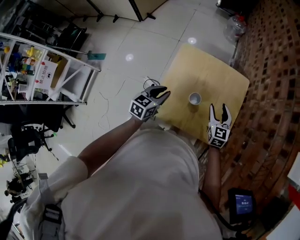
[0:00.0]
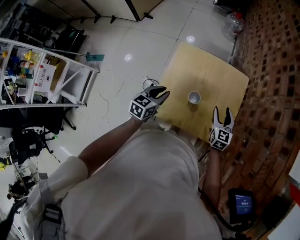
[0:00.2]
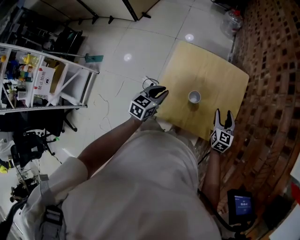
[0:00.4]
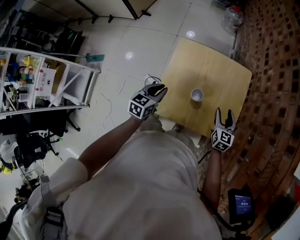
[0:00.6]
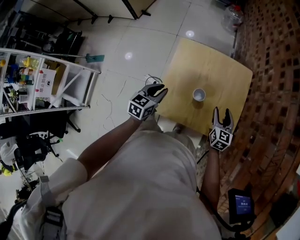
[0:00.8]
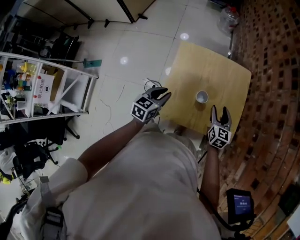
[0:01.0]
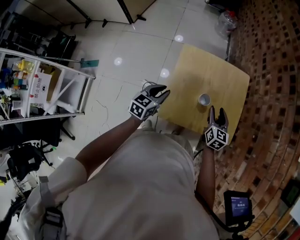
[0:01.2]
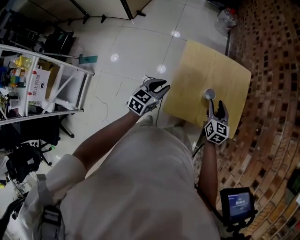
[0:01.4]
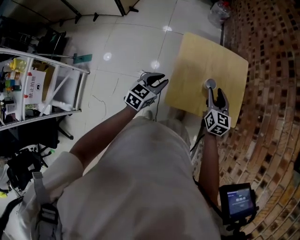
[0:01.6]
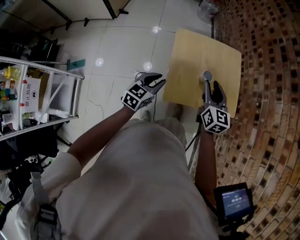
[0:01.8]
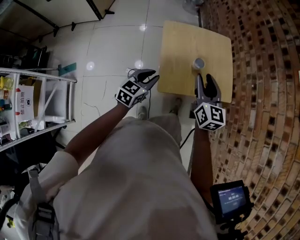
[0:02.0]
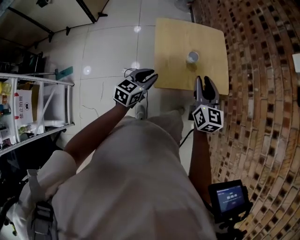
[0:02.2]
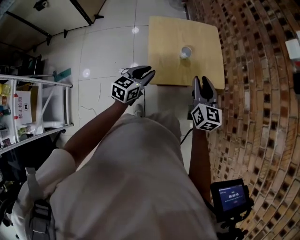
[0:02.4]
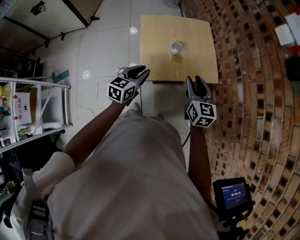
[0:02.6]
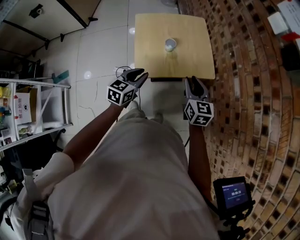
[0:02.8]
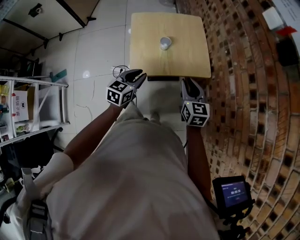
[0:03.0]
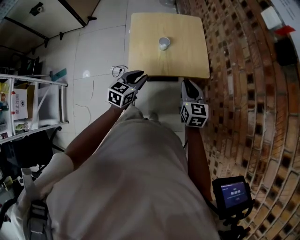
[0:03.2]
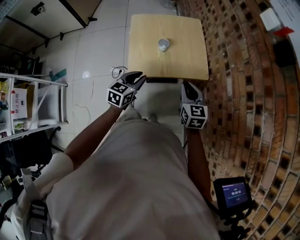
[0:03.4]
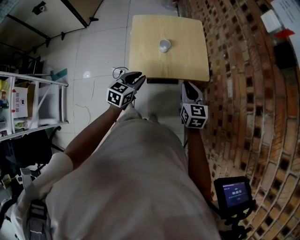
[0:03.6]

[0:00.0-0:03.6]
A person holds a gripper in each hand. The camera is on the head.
0:00.0 to 0:01.8: The right gripper is displaced to the left, backward and upward by some 25 cm, and rotates about 20 degrees; the left gripper travels to the left and backward by roughly 15 cm, and changes its angle by some 20 degrees.
0:01.8 to 0:03.6: The grippers both shift to the right and backward by some 25 cm. The right gripper closes.

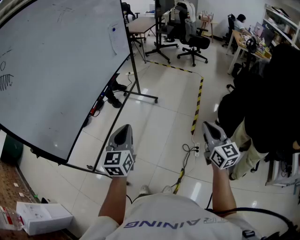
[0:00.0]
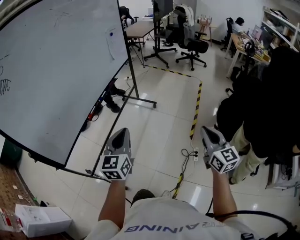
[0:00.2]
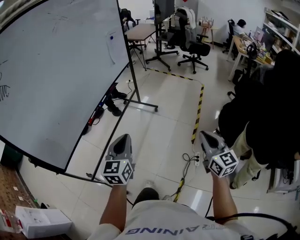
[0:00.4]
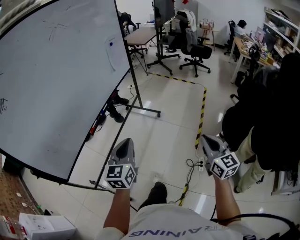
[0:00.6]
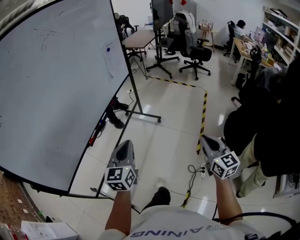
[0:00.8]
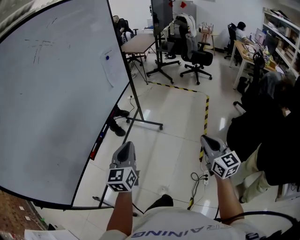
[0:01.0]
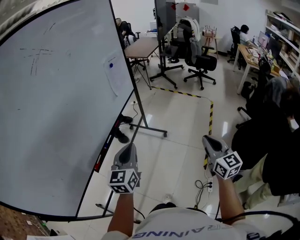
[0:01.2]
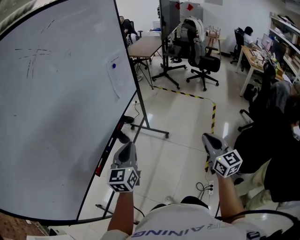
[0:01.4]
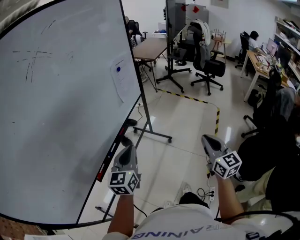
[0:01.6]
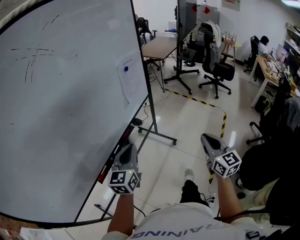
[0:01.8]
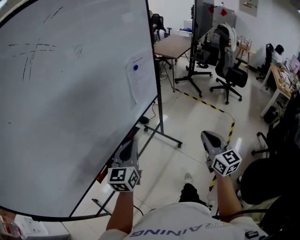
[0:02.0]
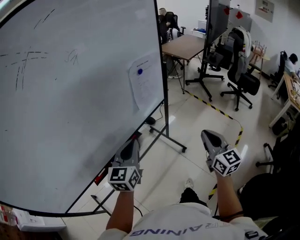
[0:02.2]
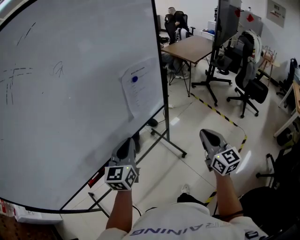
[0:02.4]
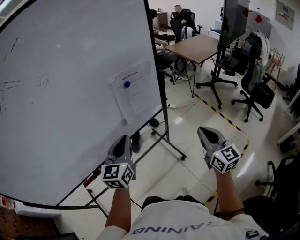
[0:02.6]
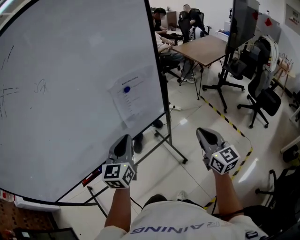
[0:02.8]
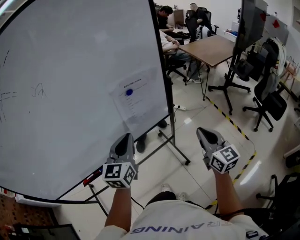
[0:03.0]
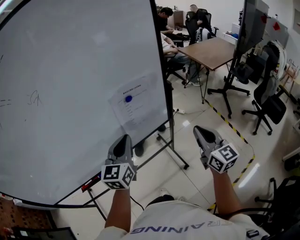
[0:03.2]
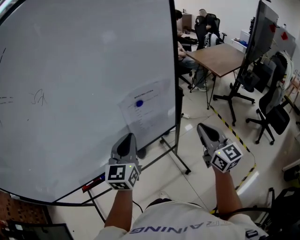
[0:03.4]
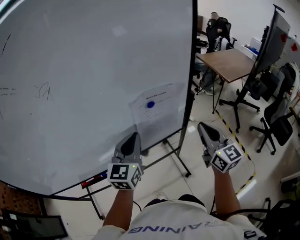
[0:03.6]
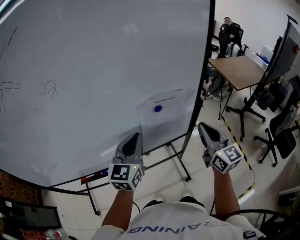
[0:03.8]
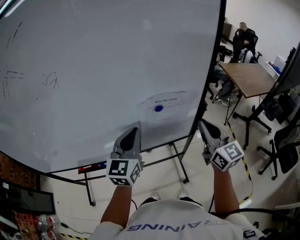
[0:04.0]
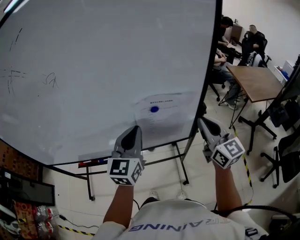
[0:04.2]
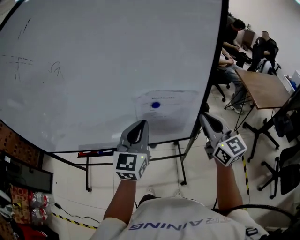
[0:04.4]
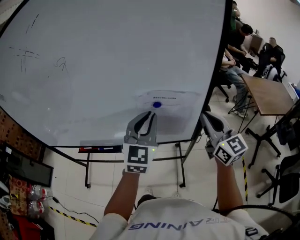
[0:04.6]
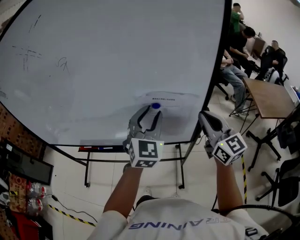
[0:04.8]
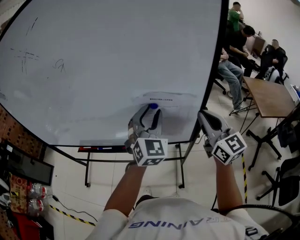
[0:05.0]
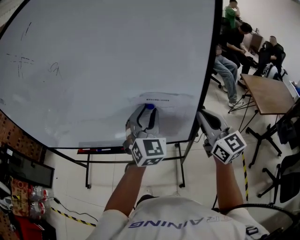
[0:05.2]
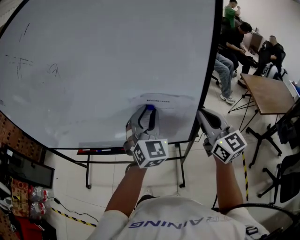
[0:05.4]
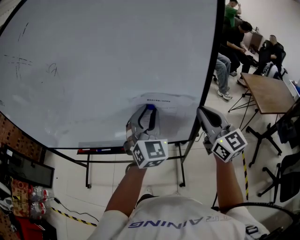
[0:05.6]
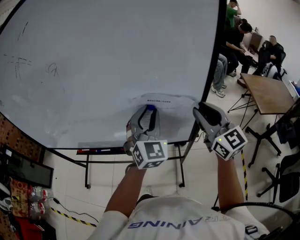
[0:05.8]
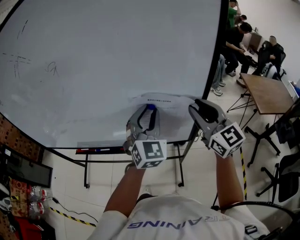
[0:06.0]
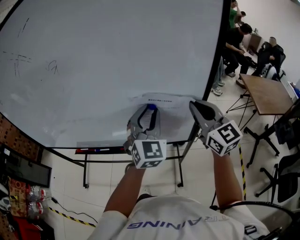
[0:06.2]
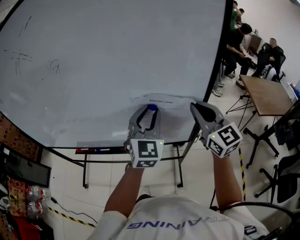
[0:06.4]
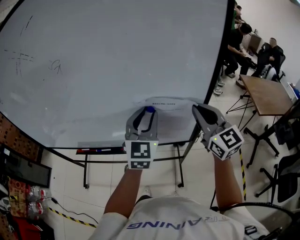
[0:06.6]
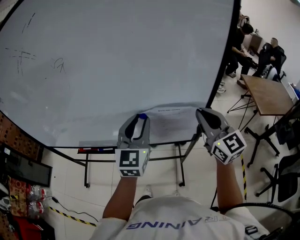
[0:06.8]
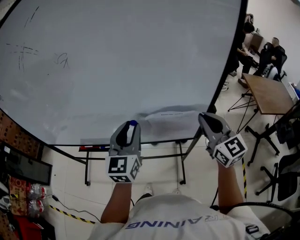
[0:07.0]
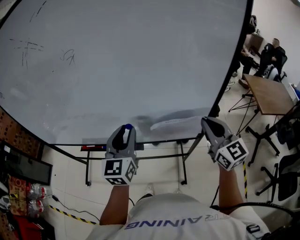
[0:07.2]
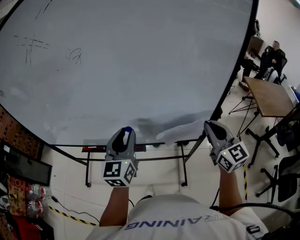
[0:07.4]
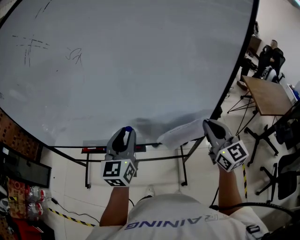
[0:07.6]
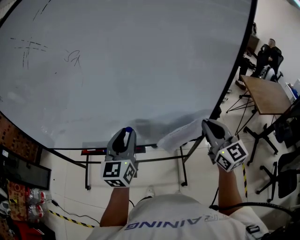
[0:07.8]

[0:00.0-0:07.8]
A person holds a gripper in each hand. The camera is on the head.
0:00.0 to 0:01.6: Both grippers move forward, some 35 cm.
0:01.6 to 0:03.2: The right gripper shifts by roughly 50 cm, and changes its angle by approximately 40 degrees. Meanwhile the left gripper shifts by approximately 35 cm, and swivels some 30 degrees.
0:03.2 to 0:04.6: The right gripper shifts by about 20 cm, and swivels about 30 degrees. Meanwhile the left gripper ends up approximately 10 cm from where it was, and turns by about 30 degrees.
0:04.6 to 0:06.2: The right gripper changes place by about 5 cm, and opens and closes again.
0:06.2 to 0:07.8: The left gripper moves to the left, some 15 cm, and changes its angle by about 30 degrees. The right gripper ends up approximately 5 cm from where it was.

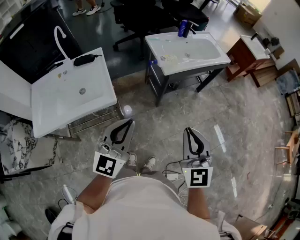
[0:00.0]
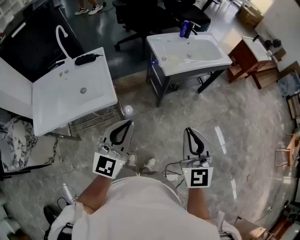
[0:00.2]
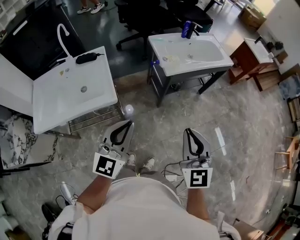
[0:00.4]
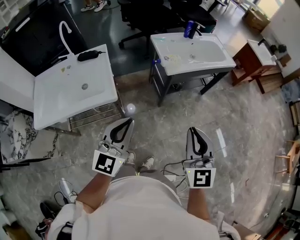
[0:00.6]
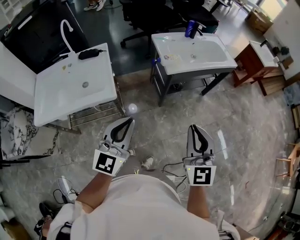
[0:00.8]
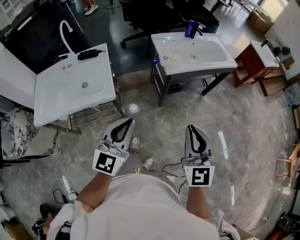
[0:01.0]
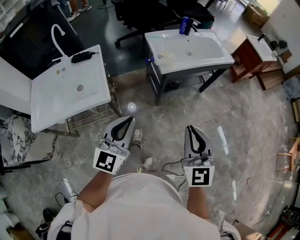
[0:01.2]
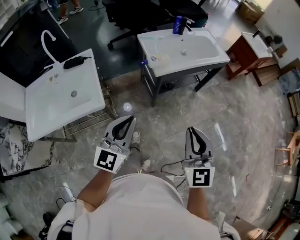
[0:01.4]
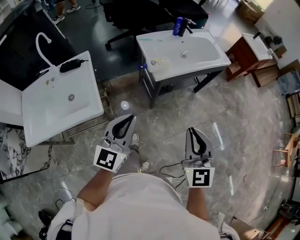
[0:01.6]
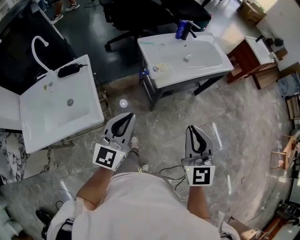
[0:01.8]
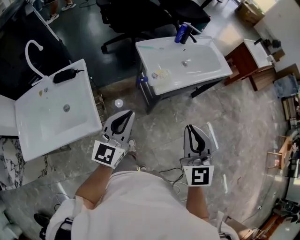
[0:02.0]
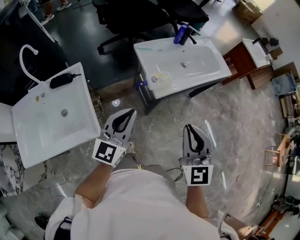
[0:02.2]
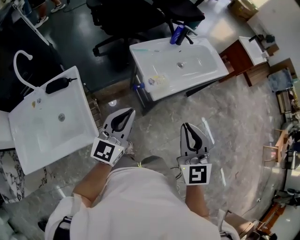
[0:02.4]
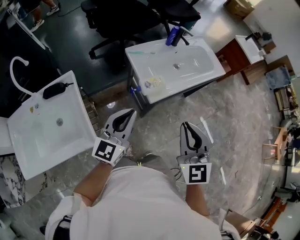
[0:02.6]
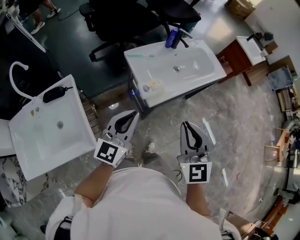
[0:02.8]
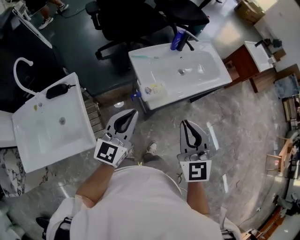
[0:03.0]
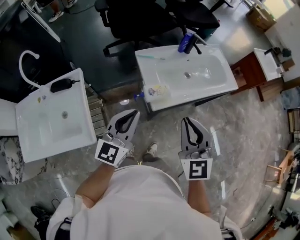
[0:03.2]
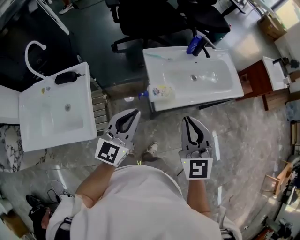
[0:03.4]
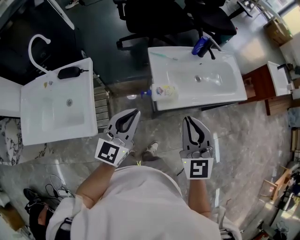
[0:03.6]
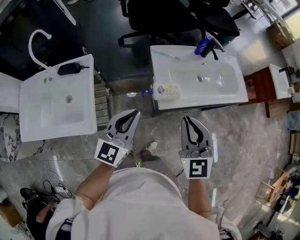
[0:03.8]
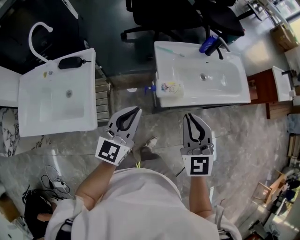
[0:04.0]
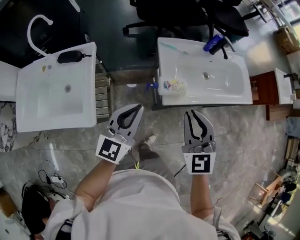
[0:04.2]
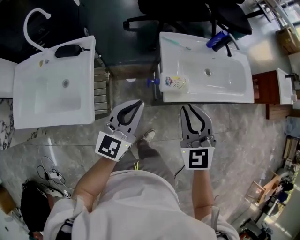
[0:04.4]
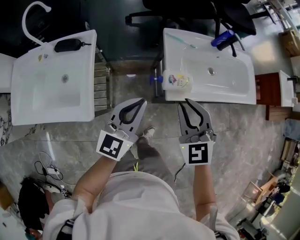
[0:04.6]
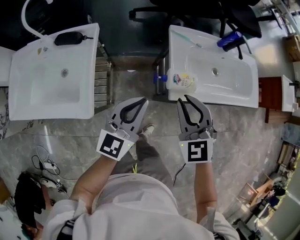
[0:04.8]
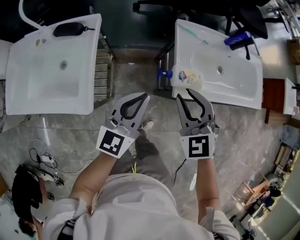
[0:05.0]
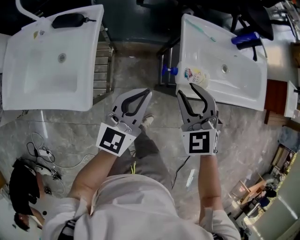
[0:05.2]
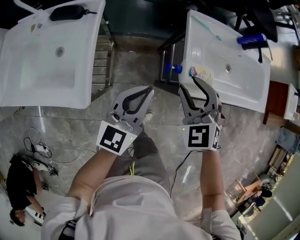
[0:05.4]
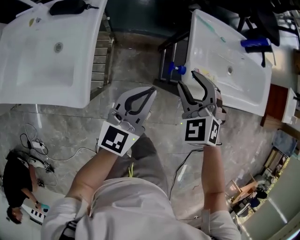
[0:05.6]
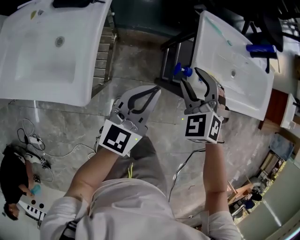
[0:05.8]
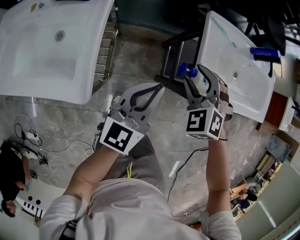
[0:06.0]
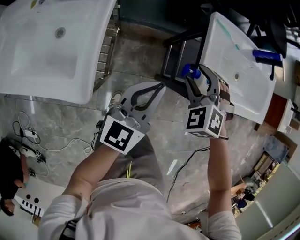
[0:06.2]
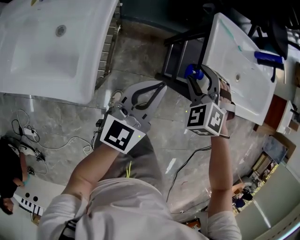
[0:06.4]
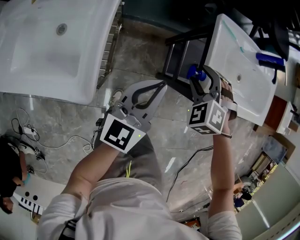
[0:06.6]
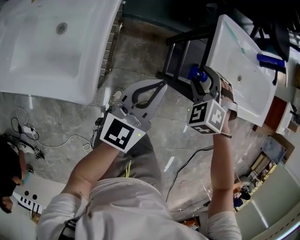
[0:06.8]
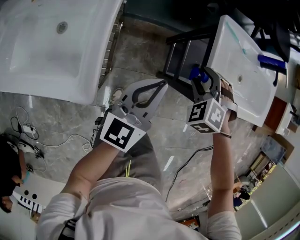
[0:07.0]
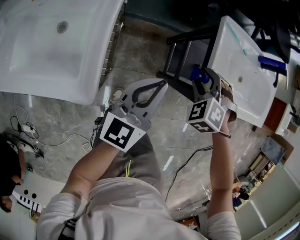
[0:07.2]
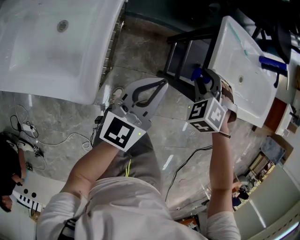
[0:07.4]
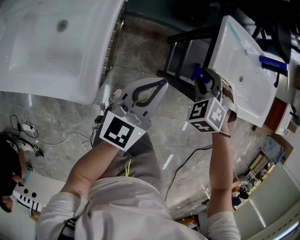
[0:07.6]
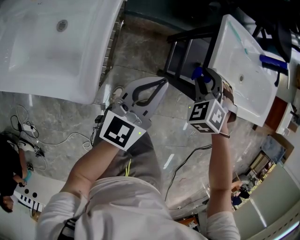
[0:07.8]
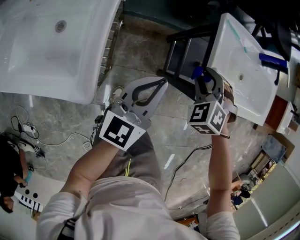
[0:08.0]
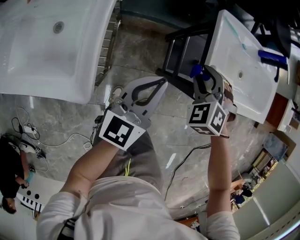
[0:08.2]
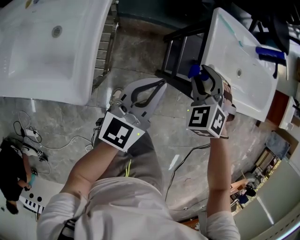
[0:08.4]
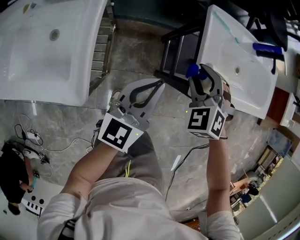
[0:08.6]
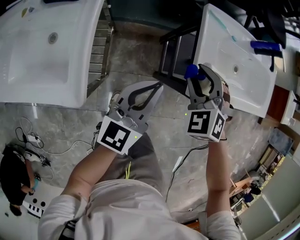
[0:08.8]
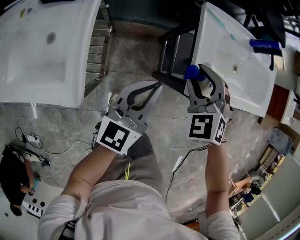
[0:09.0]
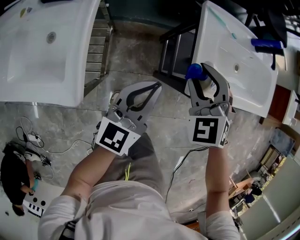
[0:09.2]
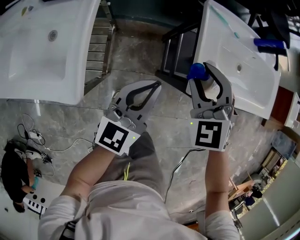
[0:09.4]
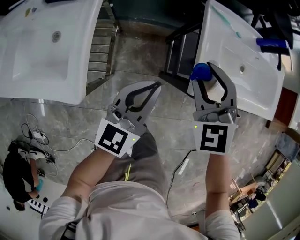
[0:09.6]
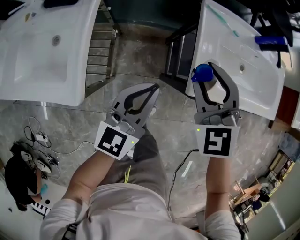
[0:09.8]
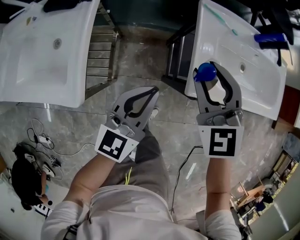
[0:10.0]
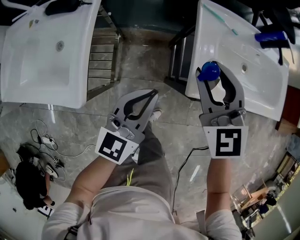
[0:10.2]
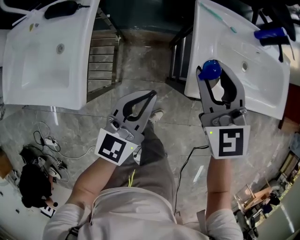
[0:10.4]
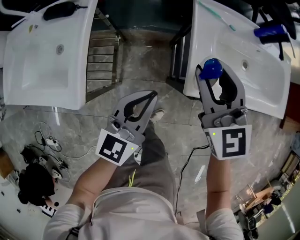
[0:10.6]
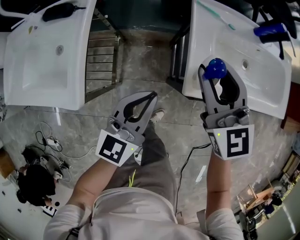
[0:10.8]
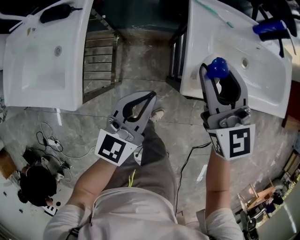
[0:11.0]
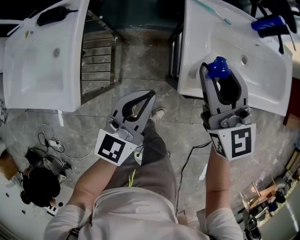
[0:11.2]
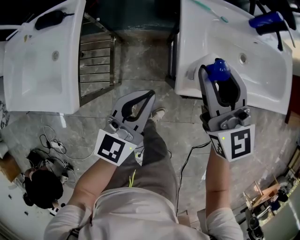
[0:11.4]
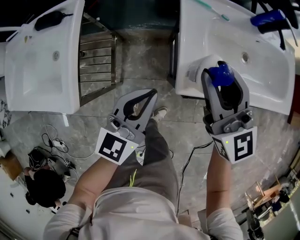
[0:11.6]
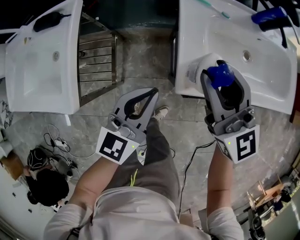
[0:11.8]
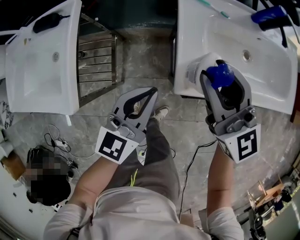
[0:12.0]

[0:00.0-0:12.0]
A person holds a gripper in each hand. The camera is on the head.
0:00.0 to 0:01.6: The grippers both shift forward and to the right by approximately 15 cm.
0:01.6 to 0:03.0: The grippers both shift forward by some 25 cm.
0:03.0 to 0:04.4: The left gripper shifts roughly 5 cm downward; the right gripper heads downward, forward and to the left, covering about 15 cm, and swivels approximately 30 degrees.
0:04.4 to 0:06.0: The right gripper moves downward, forward and to the left, about 25 cm, turns by approximately 40 degrees, and opens up; the left gripper is displaced downward and to the left by roughly 15 cm.
0:06.0 to 0:07.6: The right gripper is displaced downward by some 5 cm.
0:07.6 to 0:09.0: The right gripper moves upward, approximately 5 cm, and rotates about 20 degrees. The left gripper is displaced to the right by some 5 cm.
0:09.0 to 0:10.4: The right gripper travels upward by about 10 cm, and swivels some 40 degrees.
0:10.4 to 0:12.0: Both grippers move to the right, roughly 5 cm. The right gripper changes its angle by roughly 30 degrees.
